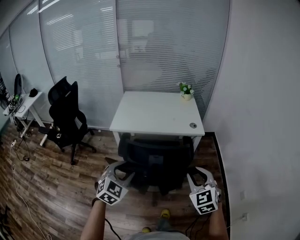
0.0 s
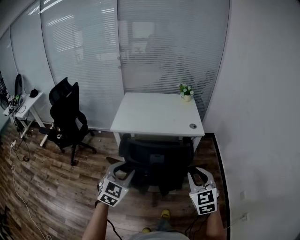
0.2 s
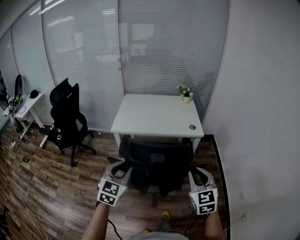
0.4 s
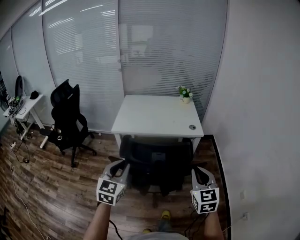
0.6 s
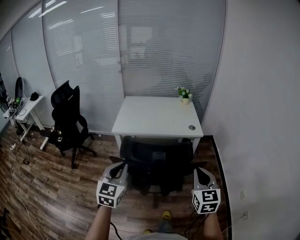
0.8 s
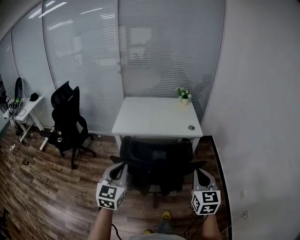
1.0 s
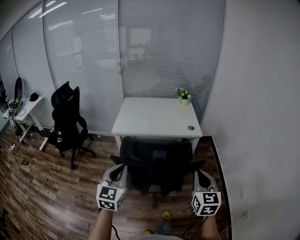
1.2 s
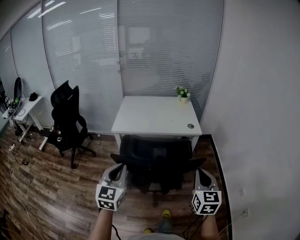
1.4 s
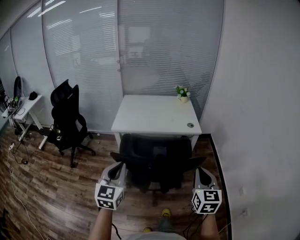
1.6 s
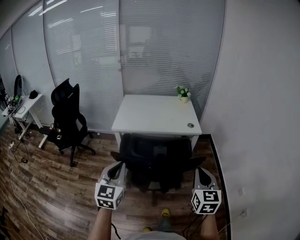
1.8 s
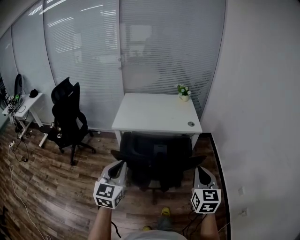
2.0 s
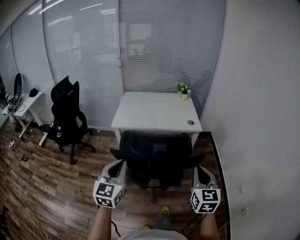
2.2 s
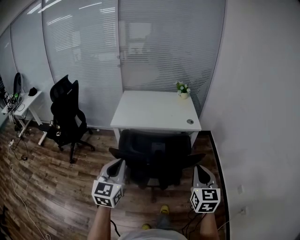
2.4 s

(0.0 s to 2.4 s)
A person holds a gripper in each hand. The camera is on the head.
0.0 s - 1.2 s: The right gripper travels backward by some 5 cm, swivels approximately 30 degrees, and closes up; the left gripper shifts about 10 cm upward and backward, rotates some 30 degrees, and closes its fingers.
1.2 s - 2.4 s: The grippers make only small movements.

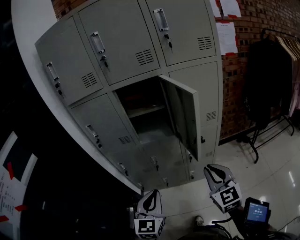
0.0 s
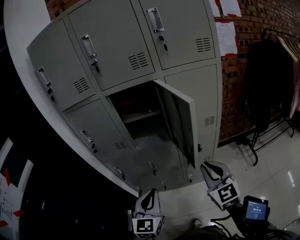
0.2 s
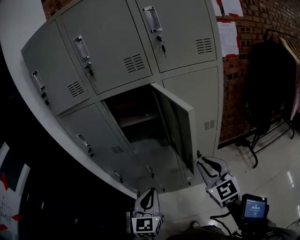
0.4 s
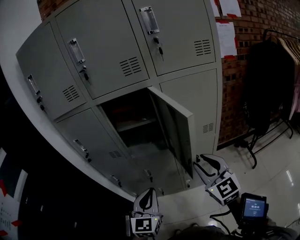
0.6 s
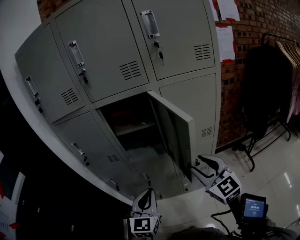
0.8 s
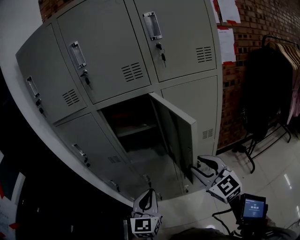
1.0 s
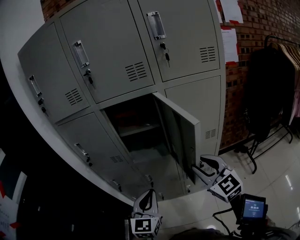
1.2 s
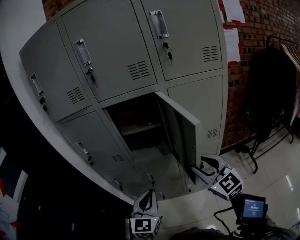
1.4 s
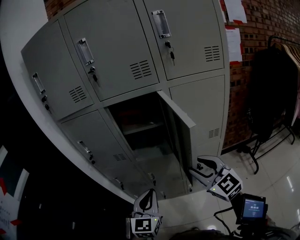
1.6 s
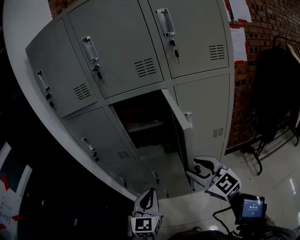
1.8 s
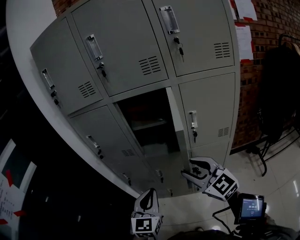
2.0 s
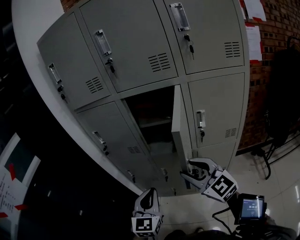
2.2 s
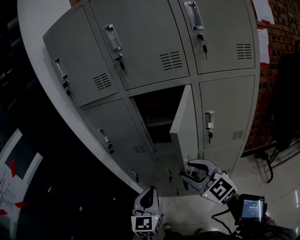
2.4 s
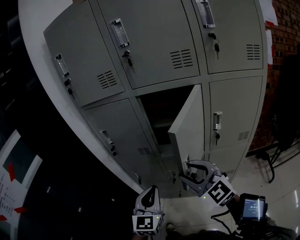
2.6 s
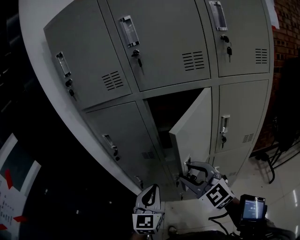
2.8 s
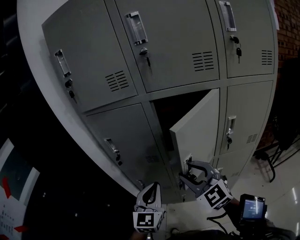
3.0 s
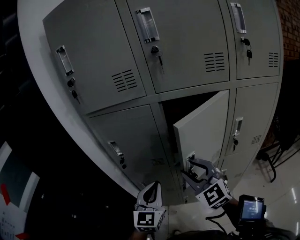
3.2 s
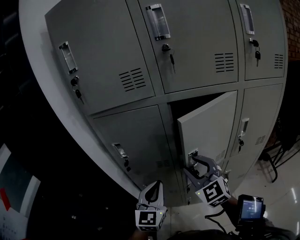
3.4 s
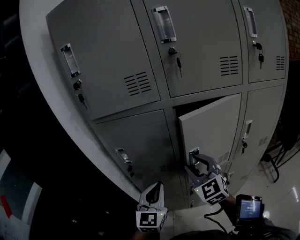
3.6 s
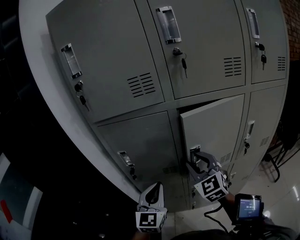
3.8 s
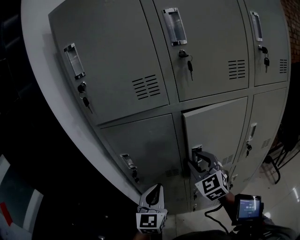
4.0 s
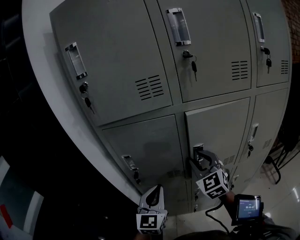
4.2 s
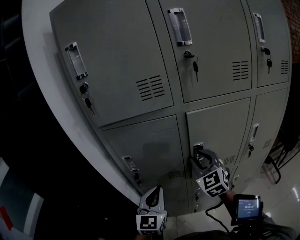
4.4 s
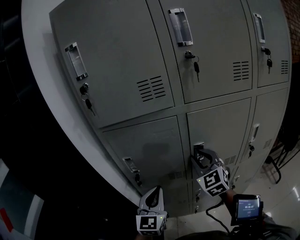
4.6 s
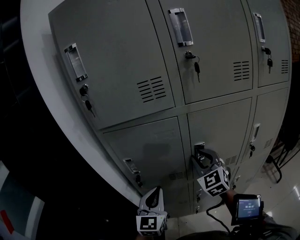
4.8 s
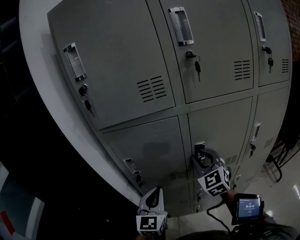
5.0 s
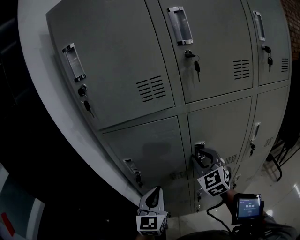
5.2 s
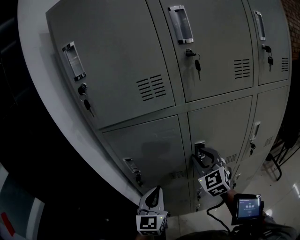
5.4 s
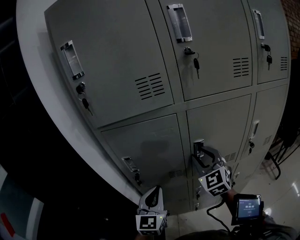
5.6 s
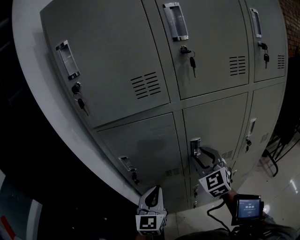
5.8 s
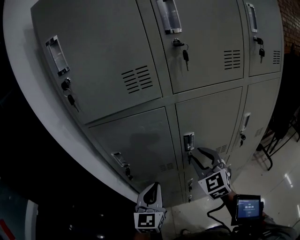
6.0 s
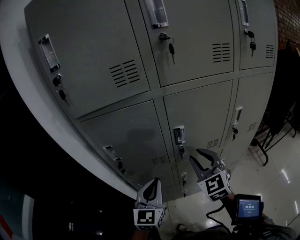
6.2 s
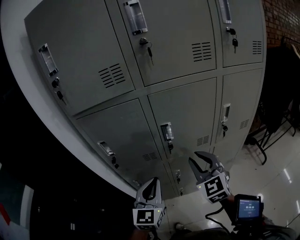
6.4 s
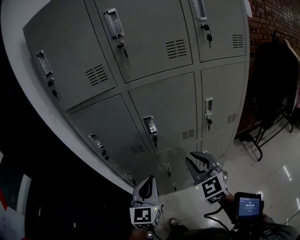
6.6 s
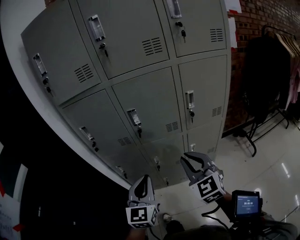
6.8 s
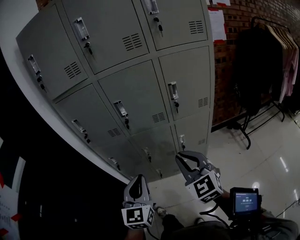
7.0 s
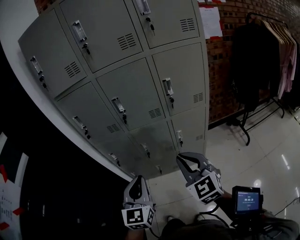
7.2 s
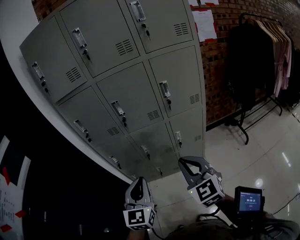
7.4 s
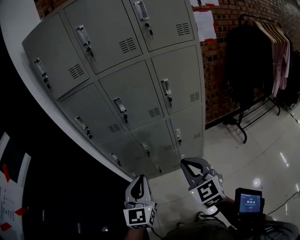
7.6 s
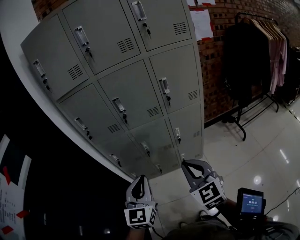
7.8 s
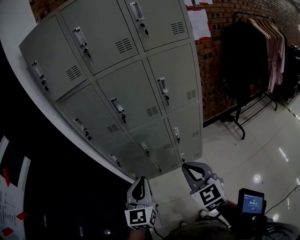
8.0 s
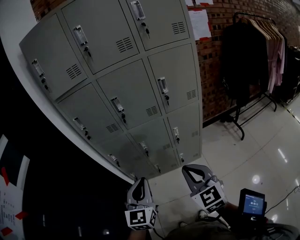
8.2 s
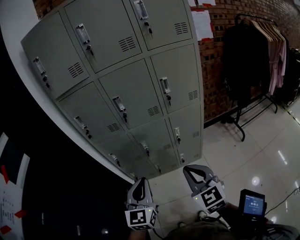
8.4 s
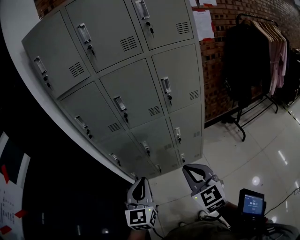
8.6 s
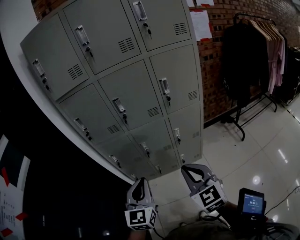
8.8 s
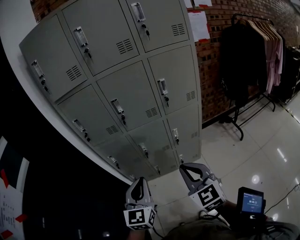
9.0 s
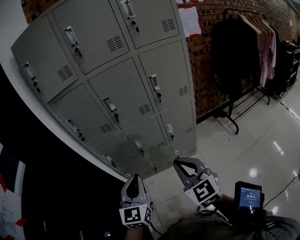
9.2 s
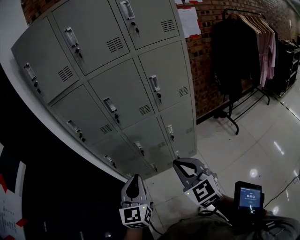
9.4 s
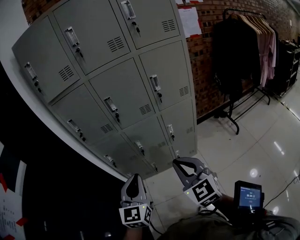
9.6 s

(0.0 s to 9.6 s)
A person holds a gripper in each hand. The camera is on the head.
0.0 s - 1.6 s: Both grippers move forward, about 15 cm. The right gripper swivels some 20 degrees, and opens its fingers.
1.6 s - 3.2 s: The right gripper heads to the left and forward, covering some 25 cm; the left gripper travels forward and to the left by some 20 cm.
3.2 s - 4.8 s: The left gripper shifts approximately 10 cm to the left and forward. The right gripper travels forward by roughly 15 cm.
4.8 s - 6.4 s: The right gripper heads backward and to the right, covering some 15 cm, while the left gripper is displaced to the right and backward by approximately 10 cm.
6.4 s - 8.0 s: The two grippers go some 35 cm backward and to the right. The right gripper closes its fingers.
8.0 s - 9.6 s: There are only small adjustments of the grippers.

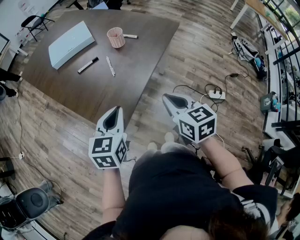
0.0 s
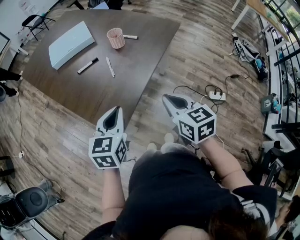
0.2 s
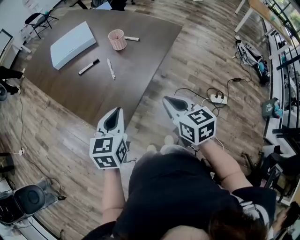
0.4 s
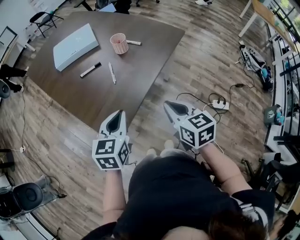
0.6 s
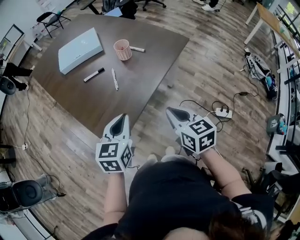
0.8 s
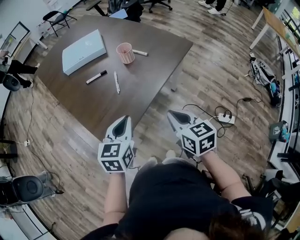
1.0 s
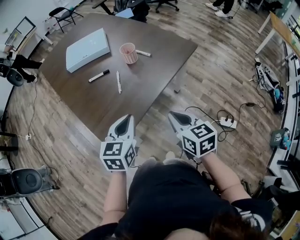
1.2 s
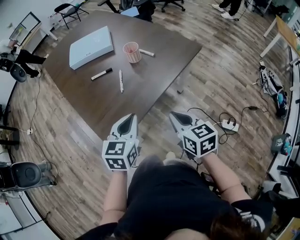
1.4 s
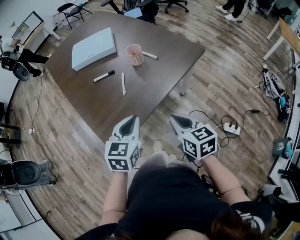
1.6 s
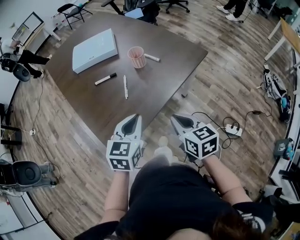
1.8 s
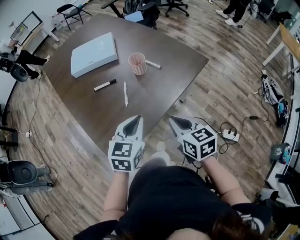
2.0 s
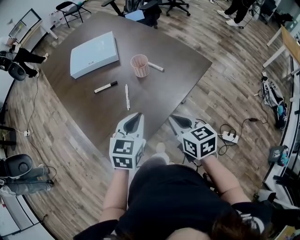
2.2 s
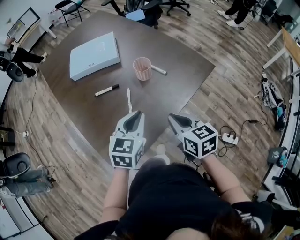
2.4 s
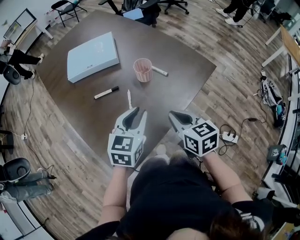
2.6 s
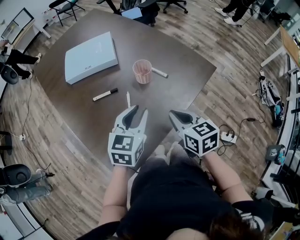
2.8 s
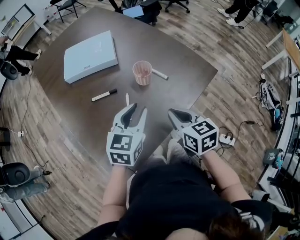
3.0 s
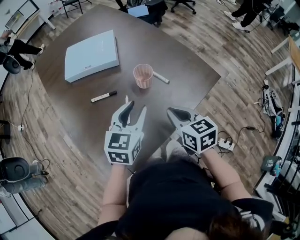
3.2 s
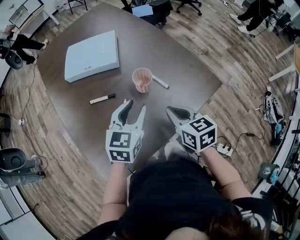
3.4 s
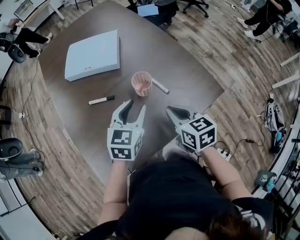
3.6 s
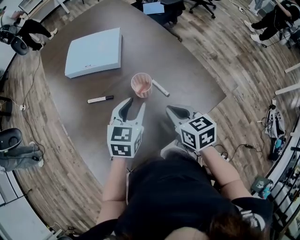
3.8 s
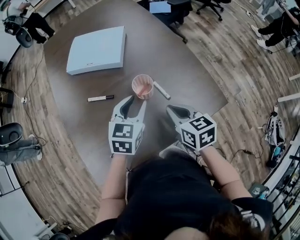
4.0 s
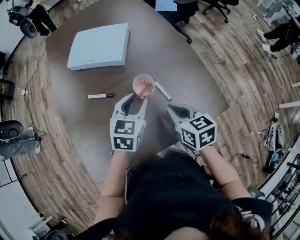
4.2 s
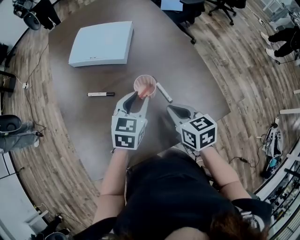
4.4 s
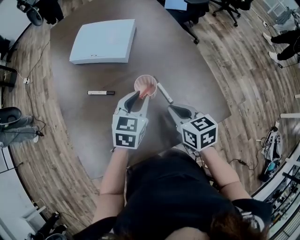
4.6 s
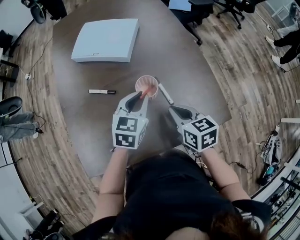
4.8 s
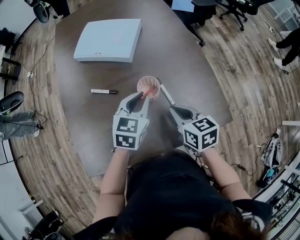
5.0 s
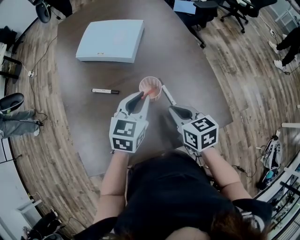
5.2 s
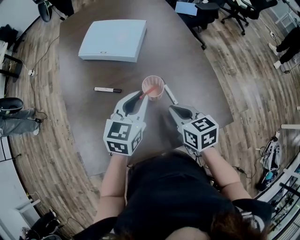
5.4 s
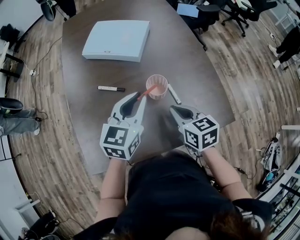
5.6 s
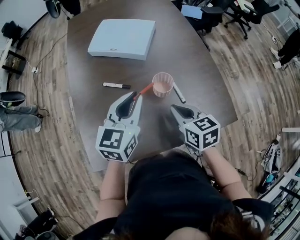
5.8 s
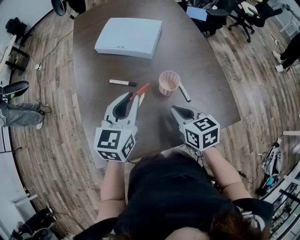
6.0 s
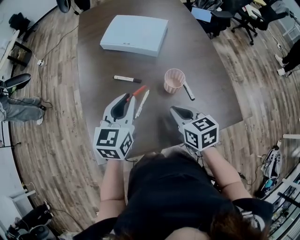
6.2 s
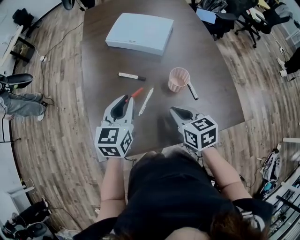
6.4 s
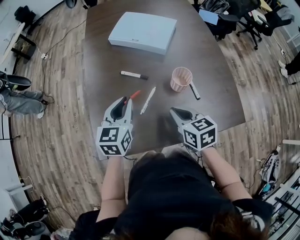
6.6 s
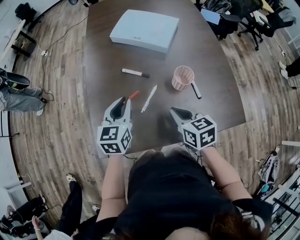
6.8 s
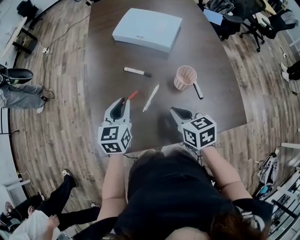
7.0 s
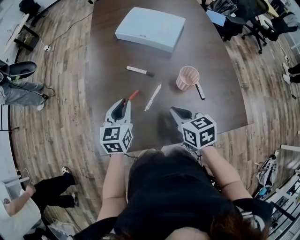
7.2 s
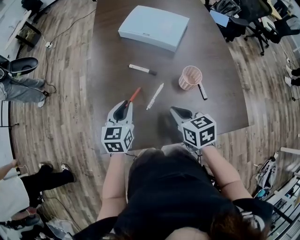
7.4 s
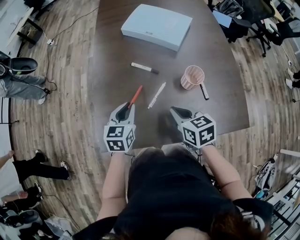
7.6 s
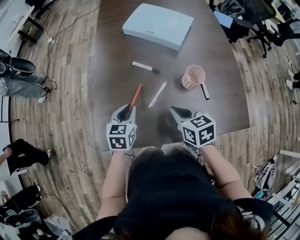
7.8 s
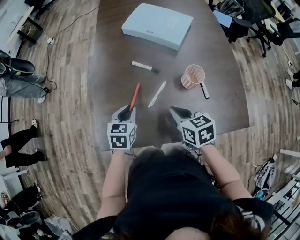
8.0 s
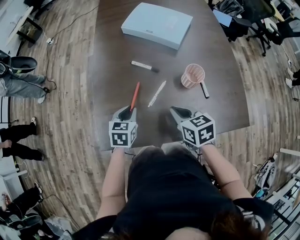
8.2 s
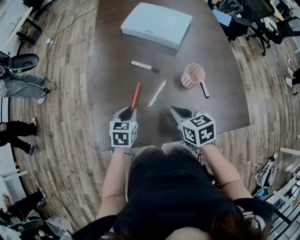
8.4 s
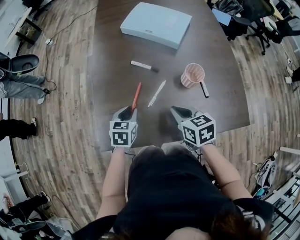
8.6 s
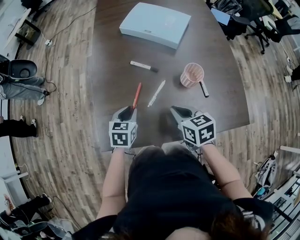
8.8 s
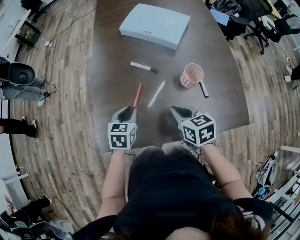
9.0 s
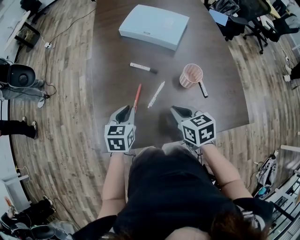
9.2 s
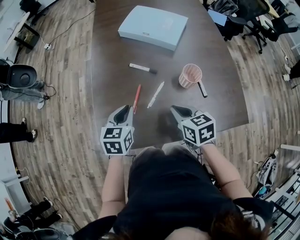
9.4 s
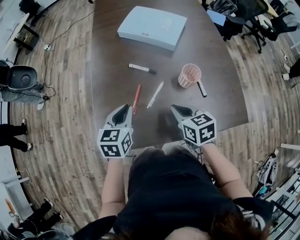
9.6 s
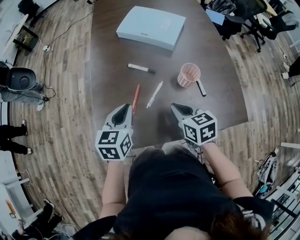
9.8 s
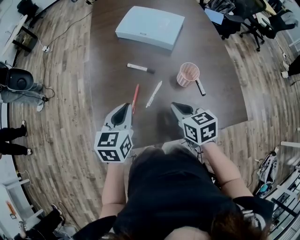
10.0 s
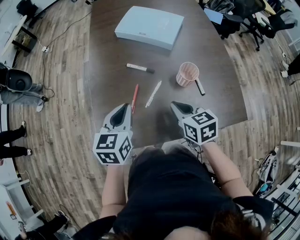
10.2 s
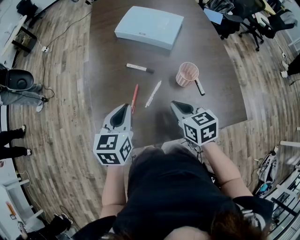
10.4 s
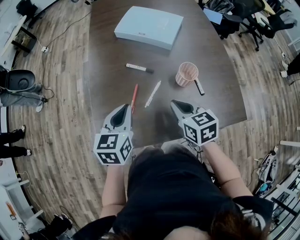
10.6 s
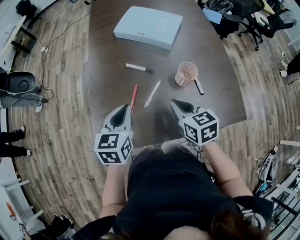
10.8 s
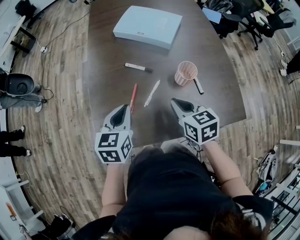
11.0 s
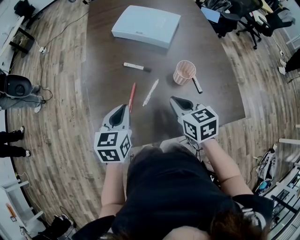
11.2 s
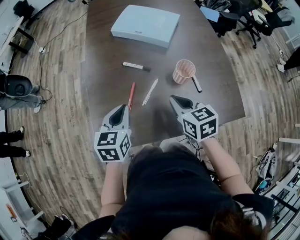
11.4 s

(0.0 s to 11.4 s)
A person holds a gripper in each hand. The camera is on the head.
0.0 s - 1.4 s: Both grippers move to the right and forward, some 10 cm.
1.4 s - 2.8 s: Both grippers move forward, approximately 20 cm. The left gripper opens up.
2.8 s - 4.2 s: The two grippers go some 15 cm forward and to the right. The right gripper turns by roughly 20 degrees. The left gripper swivels some 20 degrees.
4.2 s - 5.6 s: The left gripper shifts about 5 cm upward, and closes its fingers.
5.6 s - 7.2 s: The right gripper is displaced to the left by about 15 cm; the left gripper goes some 20 cm to the left, and swivels about 20 degrees.
7.2 s - 8.6 s: The left gripper is displaced downward by roughly 10 cm, and turns by approximately 20 degrees.
8.6 s - 10.0 s: The left gripper is displaced upward by some 15 cm.
10.0 s - 11.4 s: The grippers make only small movements.
